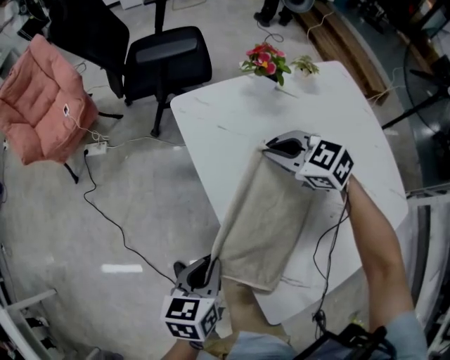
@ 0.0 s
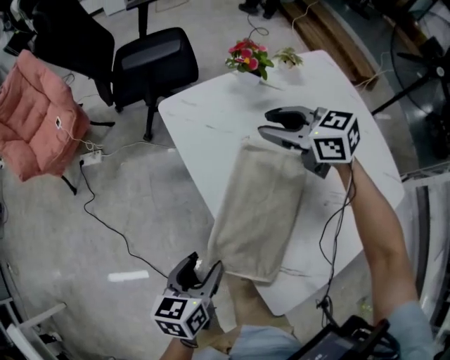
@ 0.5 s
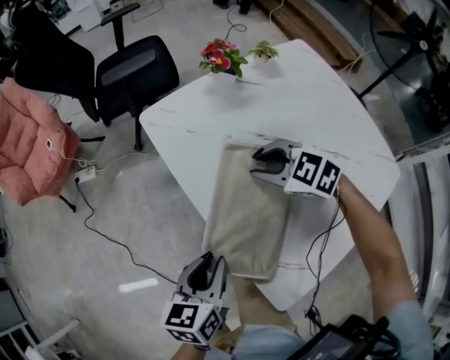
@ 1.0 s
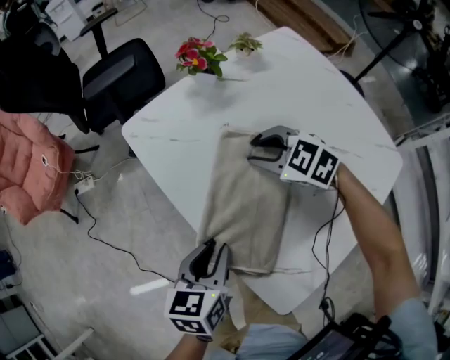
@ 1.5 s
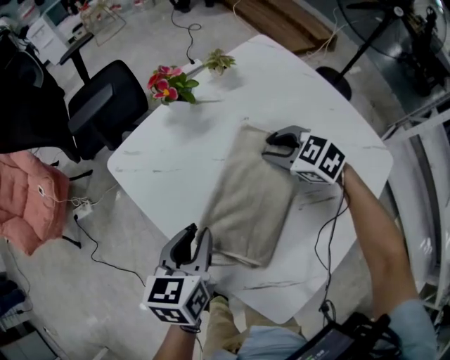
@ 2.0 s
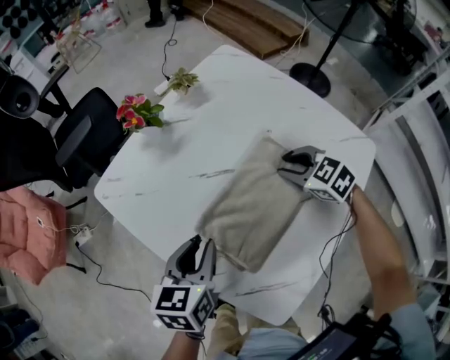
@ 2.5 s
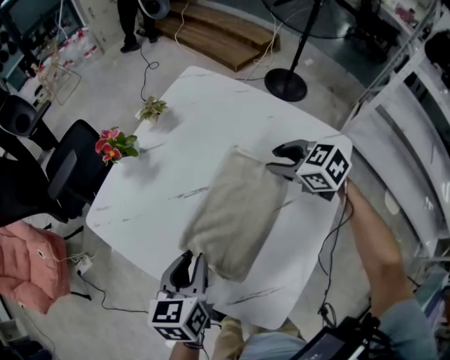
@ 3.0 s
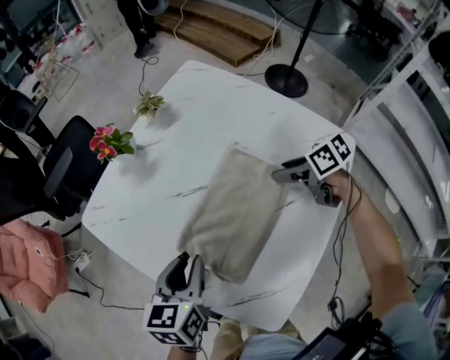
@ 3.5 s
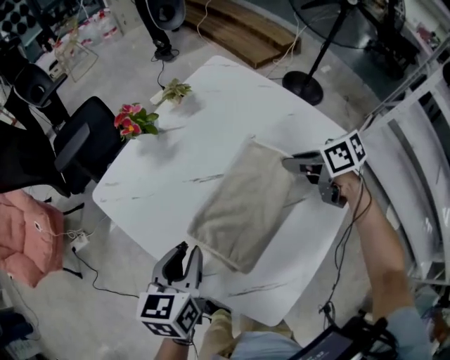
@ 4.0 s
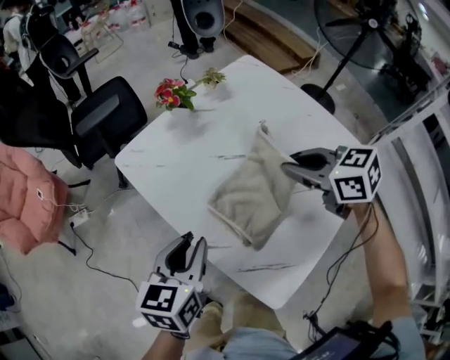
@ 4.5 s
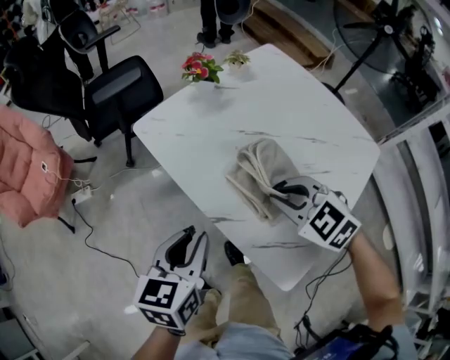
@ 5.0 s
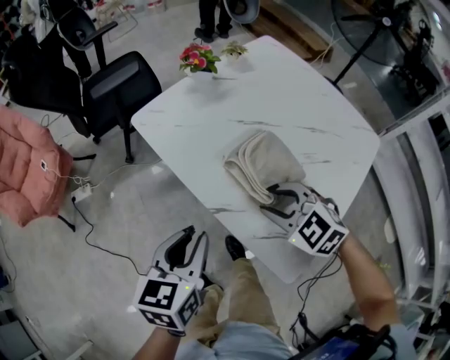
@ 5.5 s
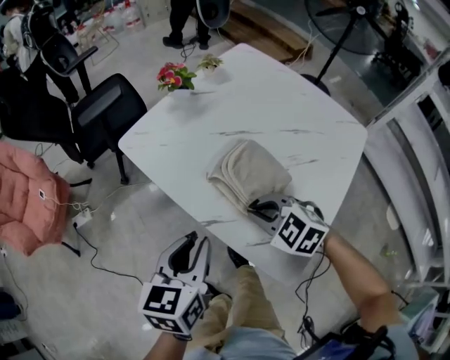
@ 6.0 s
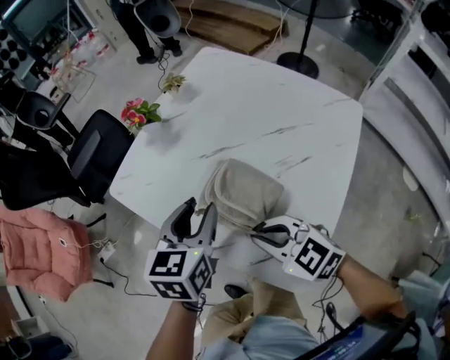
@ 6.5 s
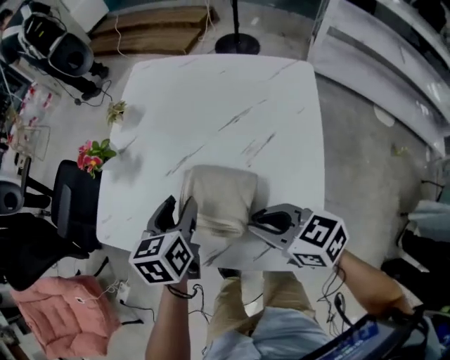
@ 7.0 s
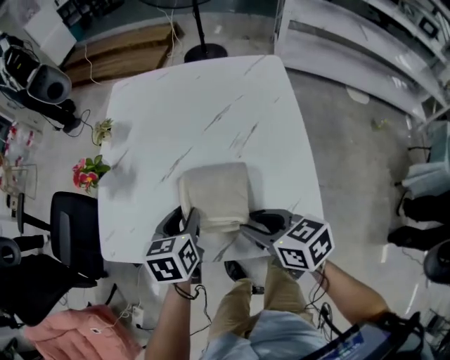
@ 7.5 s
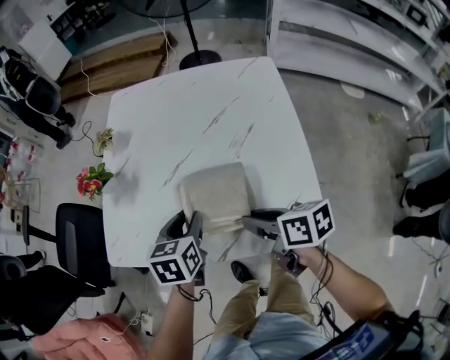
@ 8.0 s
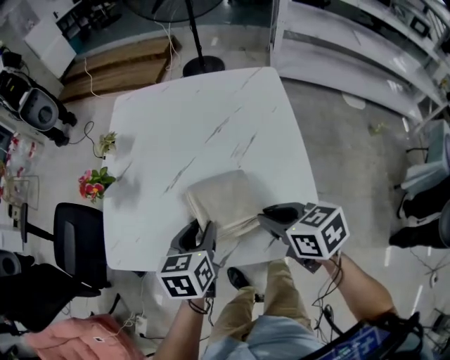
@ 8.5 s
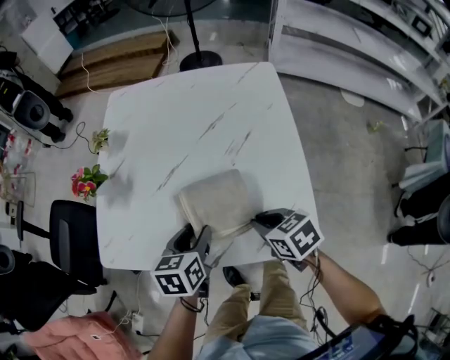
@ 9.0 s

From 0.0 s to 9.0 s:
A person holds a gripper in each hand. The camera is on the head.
From 0.0 s to 2.0 s: The left gripper is displaced forward and to the right by approximately 15 cm, and opens, then closes once more; the right gripper moves to the right, roughly 15 cm, rotates some 20 degrees, and opens up.
From 2.0 s to 4.5 s: The left gripper shifts approximately 10 cm backward and upward, and travels to the right and back again, about 5 cm each way. The right gripper moves upward and backward, roughly 20 cm, moves some 15 cm to the right and comes back, turns by approximately 30 degrees, and opens, then closes once more.
From 4.5 s to 7.0 s: The right gripper heads backward, downward and to the left, covering approximately 20 cm, swivels about 30 degrees, and opens and closes again. Meanwhile the left gripper shifts approximately 15 cm forward, to the right and downward, and turns by some 30 degrees.
From 7.0 s to 9.0 s: The right gripper is displaced downward by approximately 10 cm, changes its angle by approximately 30 degrees, and opens, then closes once more; the left gripper travels backward and downward by some 10 cm.

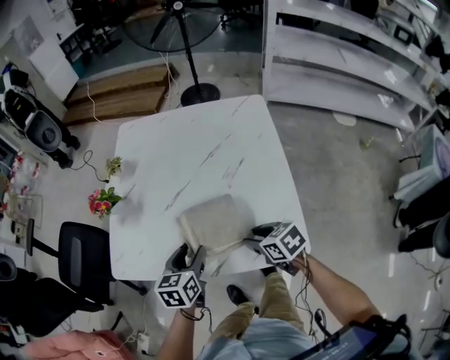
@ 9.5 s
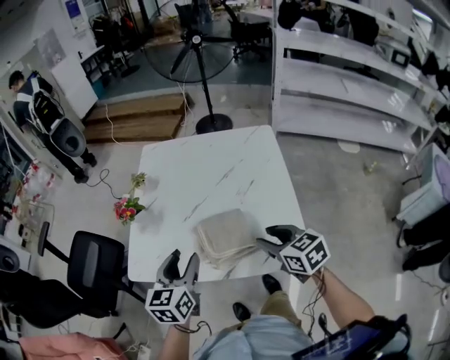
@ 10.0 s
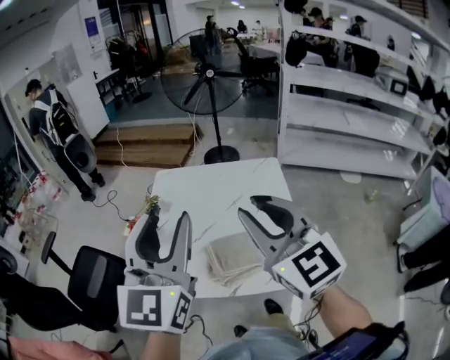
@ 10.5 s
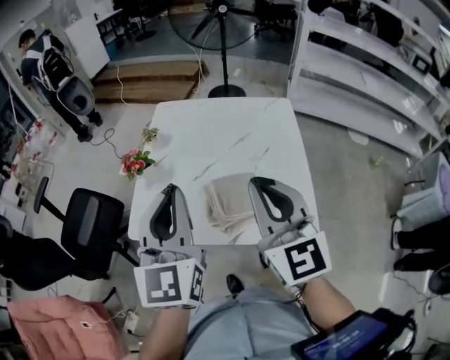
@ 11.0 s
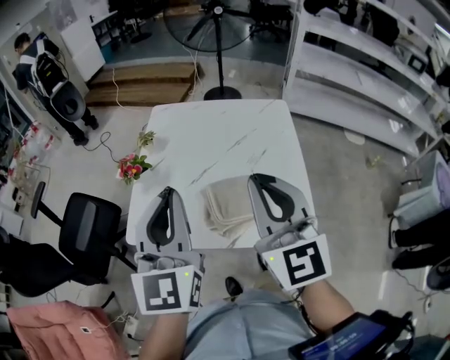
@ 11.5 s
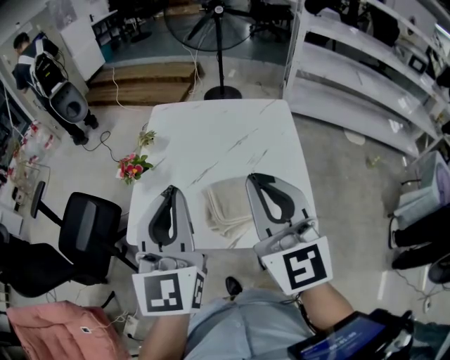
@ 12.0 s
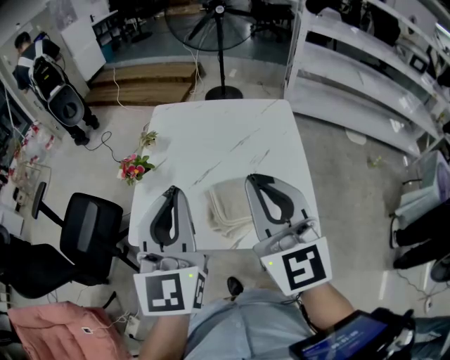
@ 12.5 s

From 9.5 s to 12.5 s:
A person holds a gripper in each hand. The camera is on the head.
From 9.5 s to 11.0 s: The two grippers go about 35 cm upward. The right gripper tips its fingers upward by approximately 50 degrees, and closes its fingers. The left gripper angles its fingers upward, by some 40 degrees, and closes.
From 11.0 s to 12.5 s: The grippers move only a little.

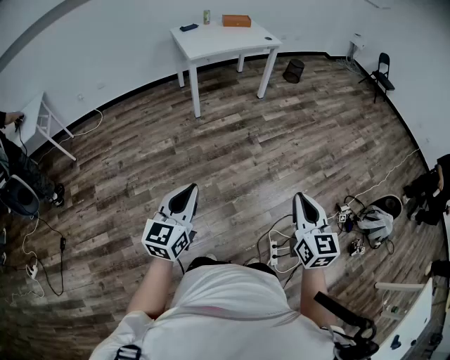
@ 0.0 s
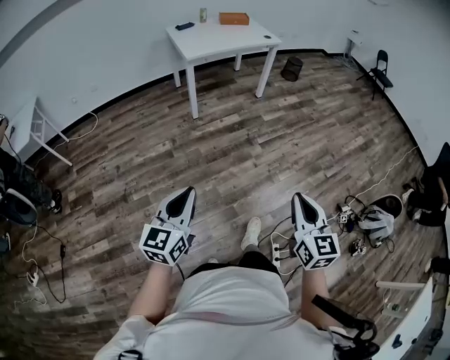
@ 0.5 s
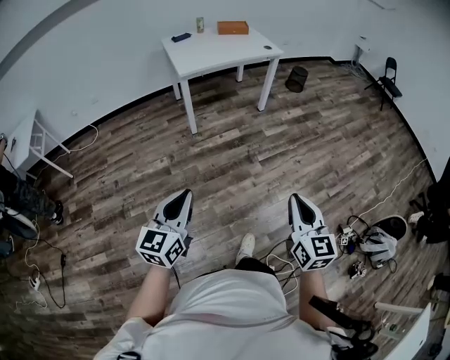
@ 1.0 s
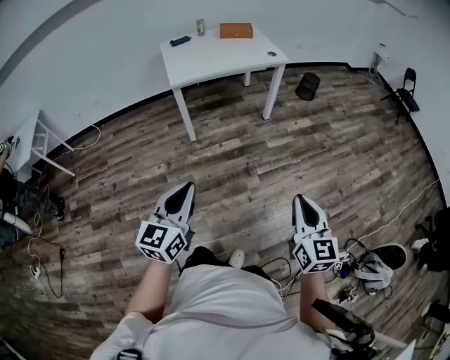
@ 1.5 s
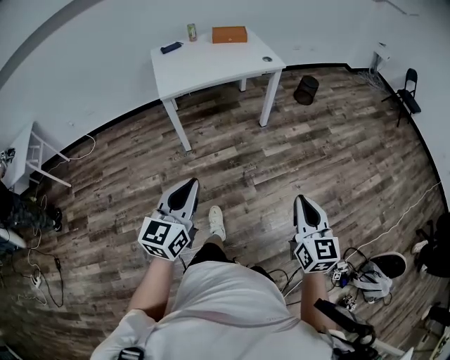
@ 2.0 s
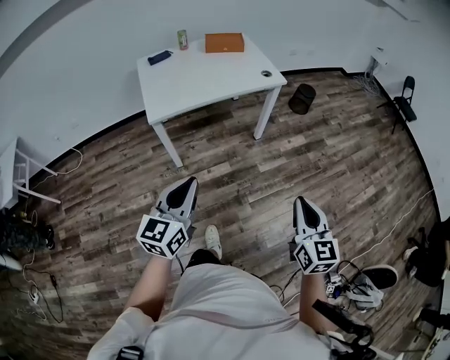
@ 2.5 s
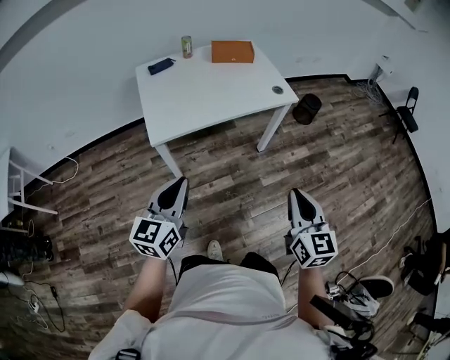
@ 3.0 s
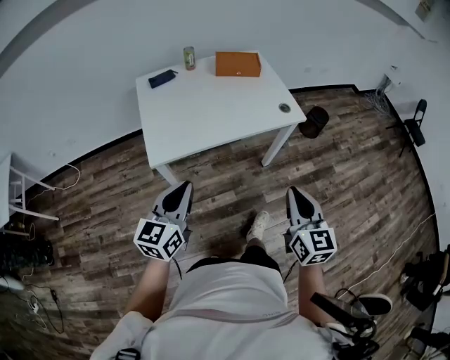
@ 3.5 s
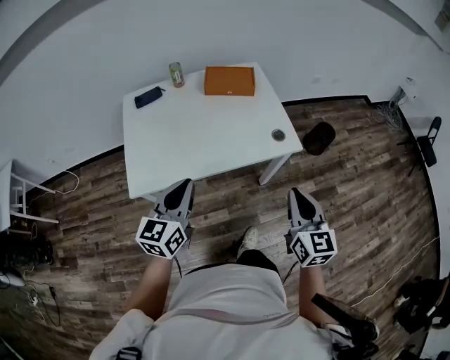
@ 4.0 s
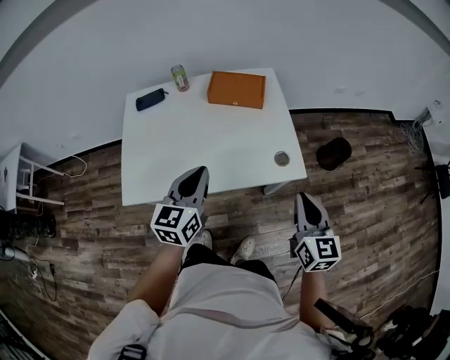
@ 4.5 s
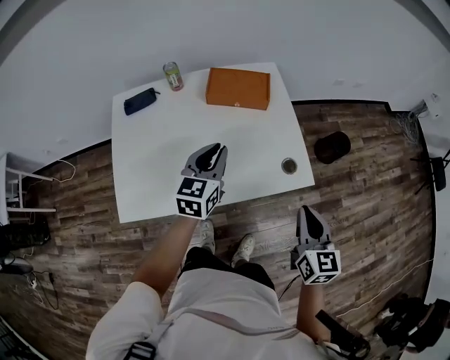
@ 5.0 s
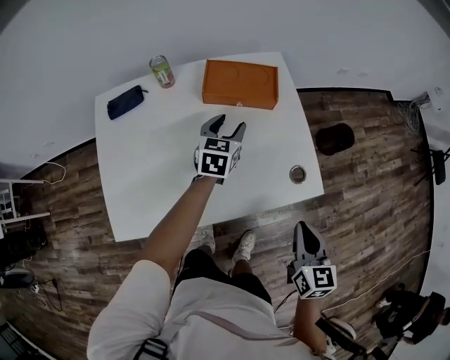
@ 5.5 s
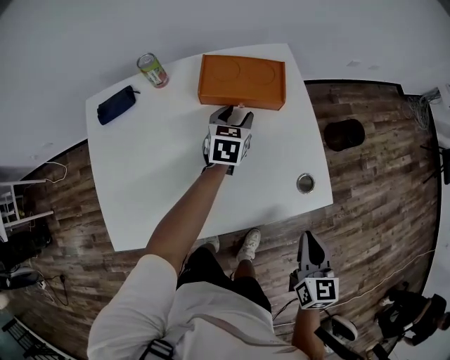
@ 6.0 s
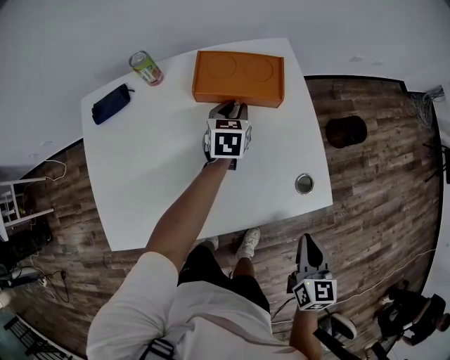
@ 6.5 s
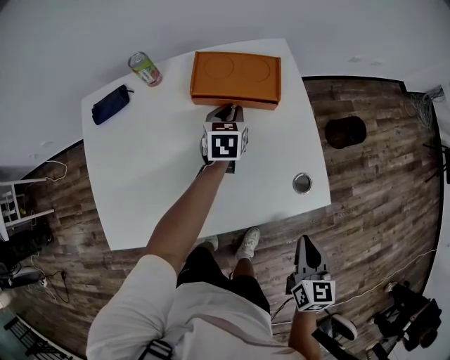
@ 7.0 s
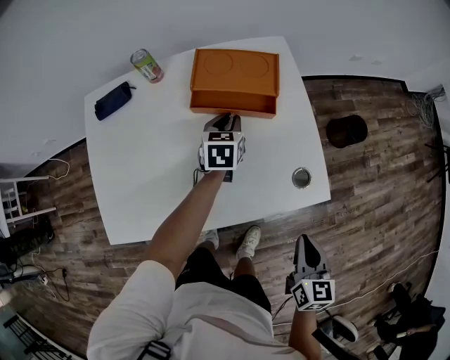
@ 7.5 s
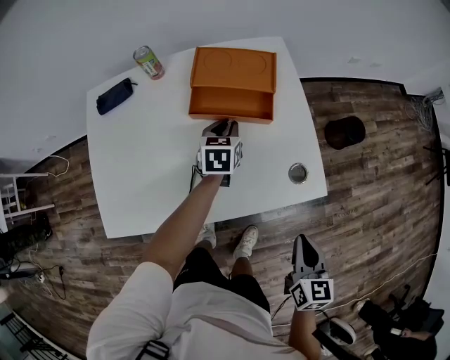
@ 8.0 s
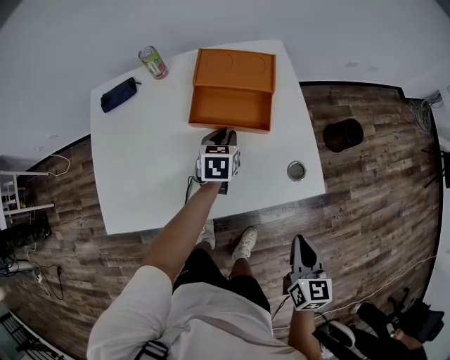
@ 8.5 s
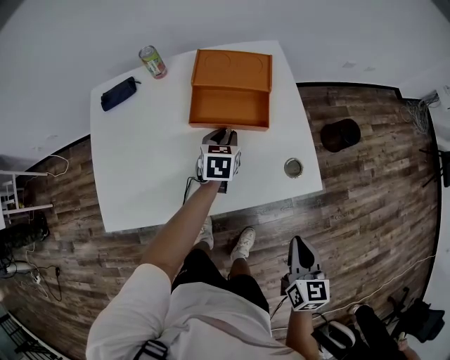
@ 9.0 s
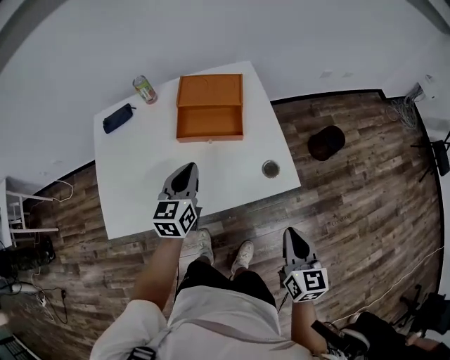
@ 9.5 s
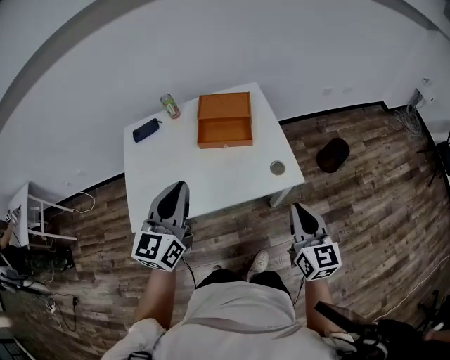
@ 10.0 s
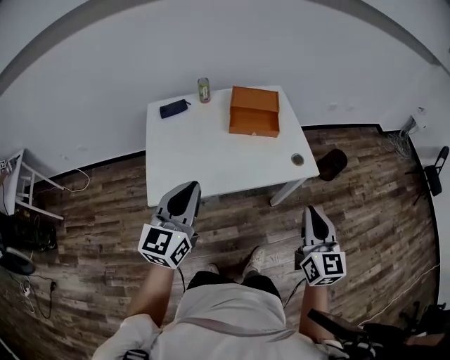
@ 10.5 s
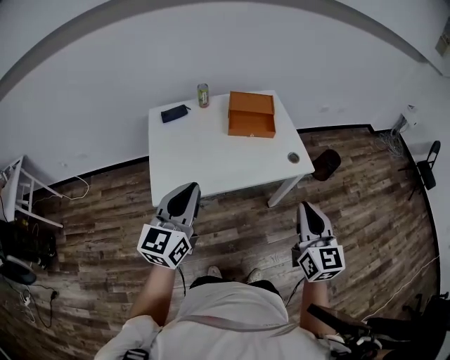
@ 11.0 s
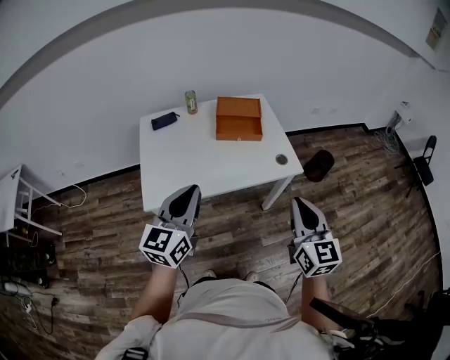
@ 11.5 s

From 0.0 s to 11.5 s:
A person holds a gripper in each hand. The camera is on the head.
From 0.0 s to 2.0 s: The two grippers travel together, forward, about 50 cm.
From 2.0 s to 4.0 s: The pair of grippers is taken forward, roughly 60 cm.
From 4.0 s to 6.0 s: The left gripper shifts approximately 60 cm forward and downward, turns by approximately 20 degrees, and opens up; the right gripper moves forward and downward, roughly 25 cm, and turns by some 20 degrees.
From 6.0 s to 7.5 s: The left gripper closes up.
From 7.5 s to 9.5 s: The left gripper goes some 25 cm backward and upward. Meanwhile the right gripper is displaced upward by about 5 cm.
From 9.5 s to 11.5 s: The right gripper goes some 30 cm upward, backward and to the left, and turns by about 20 degrees, while the left gripper heads backward and upward, covering about 40 cm.

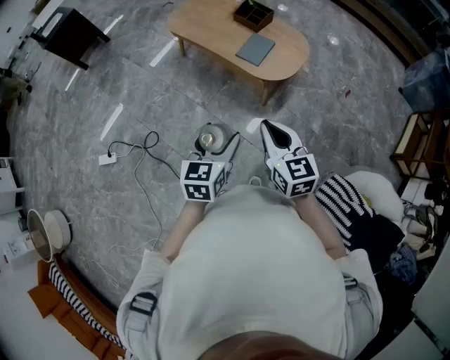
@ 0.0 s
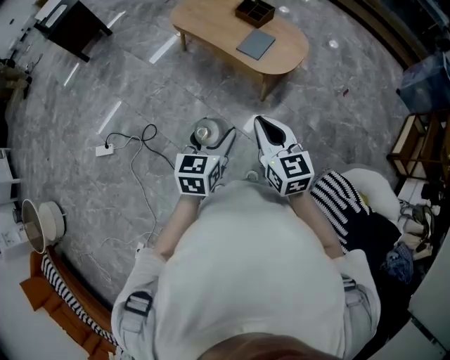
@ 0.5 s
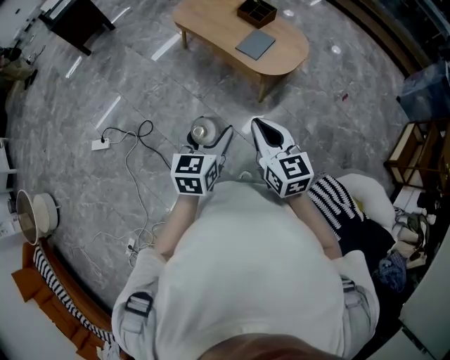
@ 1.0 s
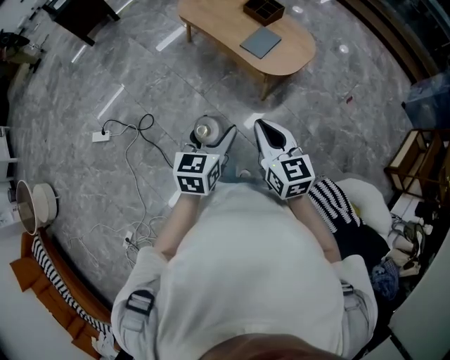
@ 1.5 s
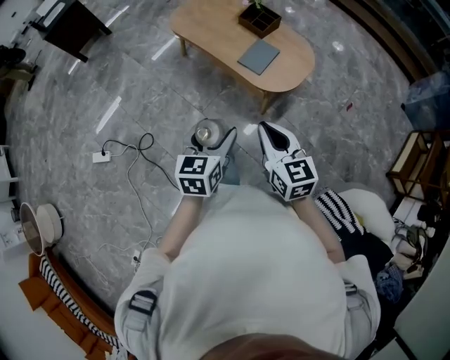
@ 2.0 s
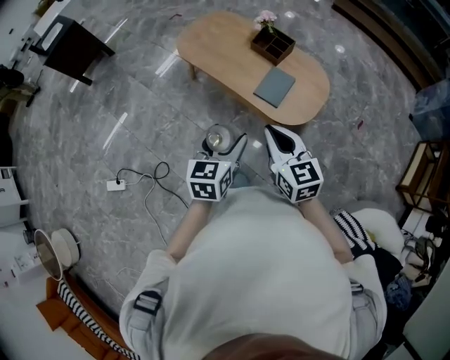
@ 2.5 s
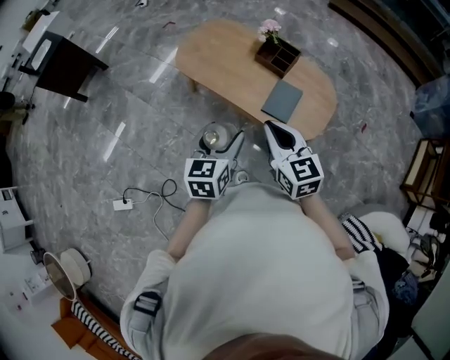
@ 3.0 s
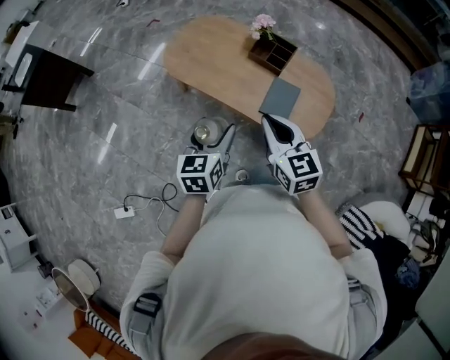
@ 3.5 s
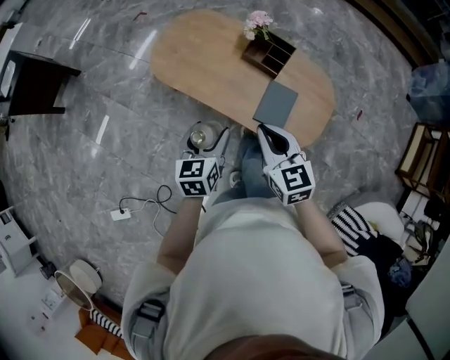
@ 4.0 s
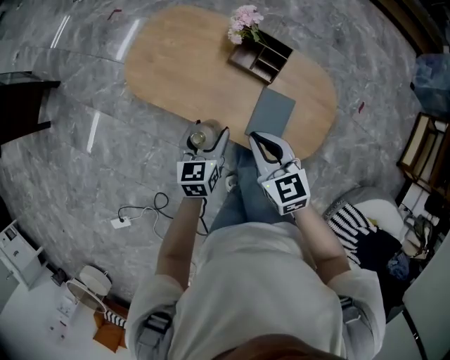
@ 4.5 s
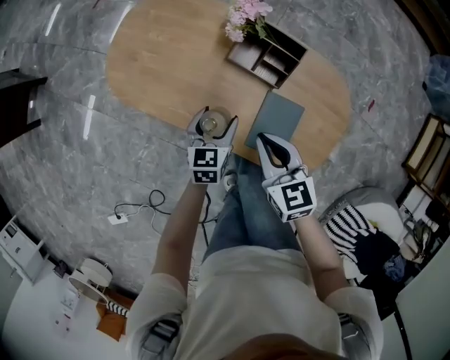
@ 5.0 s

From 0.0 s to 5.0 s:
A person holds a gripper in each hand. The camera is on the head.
From 0.0 s to 2.5 s: The grippers both shift forward by roughly 25 cm.
From 2.5 s to 5.0 s: Both grippers travel together forward and downward, approximately 50 cm. The right gripper swivels some 20 degrees.
